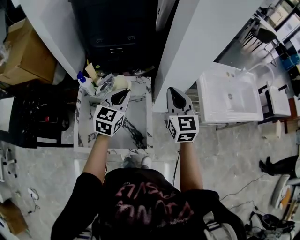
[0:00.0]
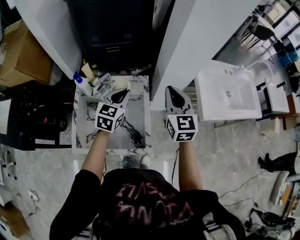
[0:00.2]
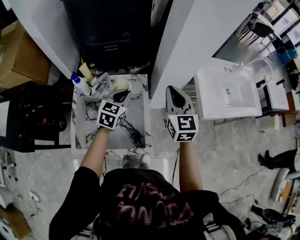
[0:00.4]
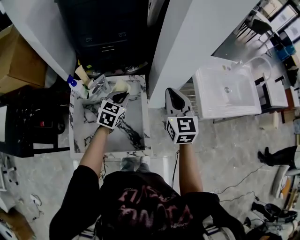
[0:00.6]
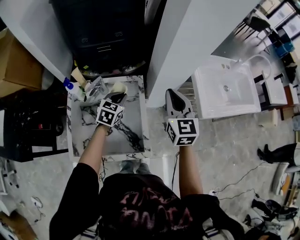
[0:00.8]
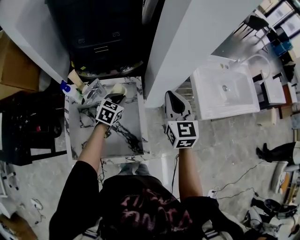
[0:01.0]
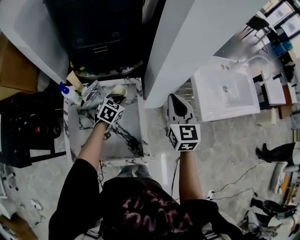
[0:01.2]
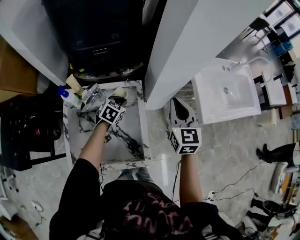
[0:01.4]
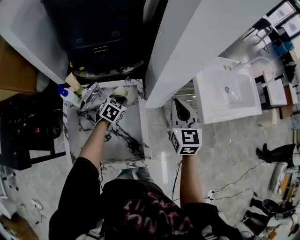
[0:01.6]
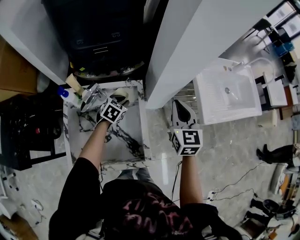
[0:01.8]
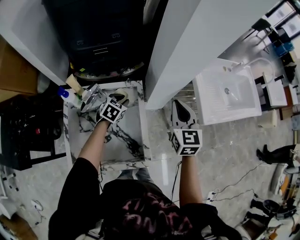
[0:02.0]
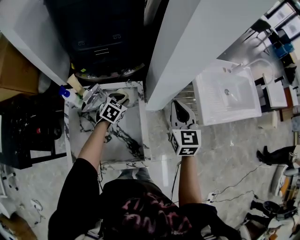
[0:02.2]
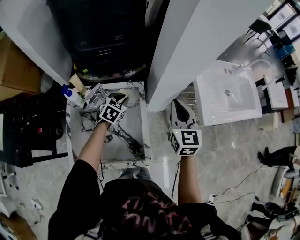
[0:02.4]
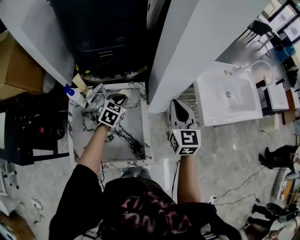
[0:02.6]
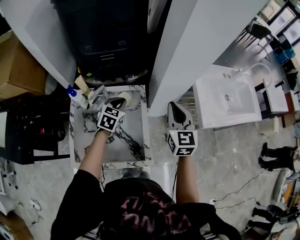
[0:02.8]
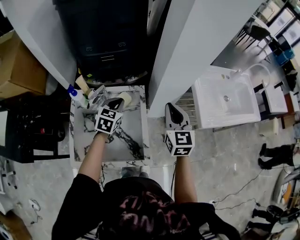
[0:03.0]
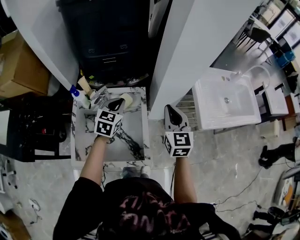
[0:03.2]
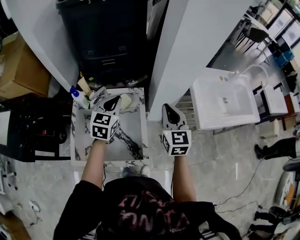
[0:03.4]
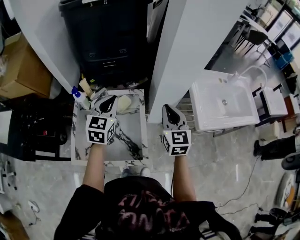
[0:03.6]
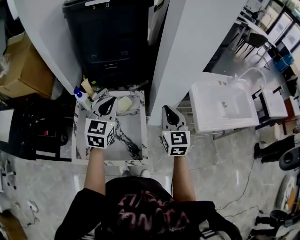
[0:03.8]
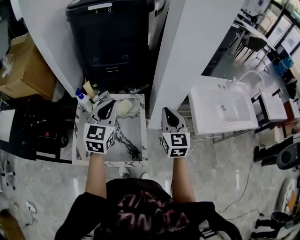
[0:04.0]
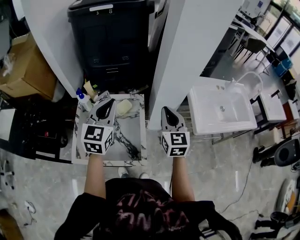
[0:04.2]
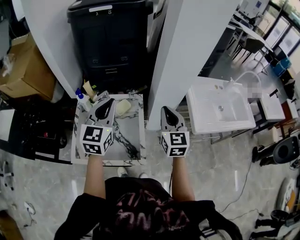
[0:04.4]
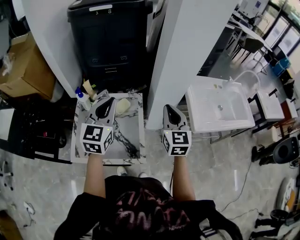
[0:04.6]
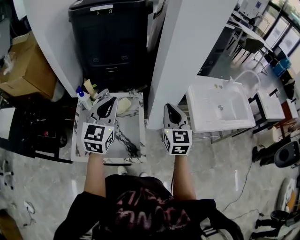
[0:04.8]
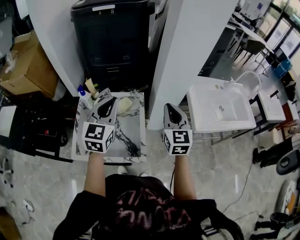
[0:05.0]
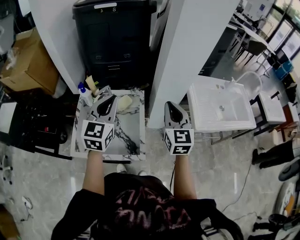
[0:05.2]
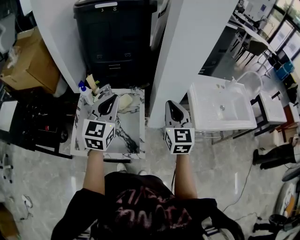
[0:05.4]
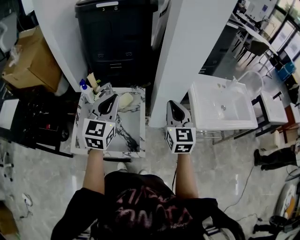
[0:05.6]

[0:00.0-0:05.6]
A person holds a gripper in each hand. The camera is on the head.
0:00.0 to 0:01.4: The left gripper is displaced downward and forward by approximately 25 cm, and changes its angle by some 30 degrees. Meanwhile the right gripper shifts approximately 5 cm downward.
0:01.4 to 0:02.8: The left gripper moves upward, roughly 10 cm.
0:02.8 to 0:04.2: The right gripper moves about 5 cm, while the left gripper heads upward and backward, covering some 25 cm, and turns by roughly 30 degrees.
0:04.2 to 0:05.6: The grippers make only small movements.

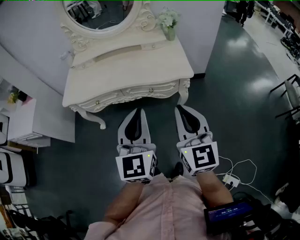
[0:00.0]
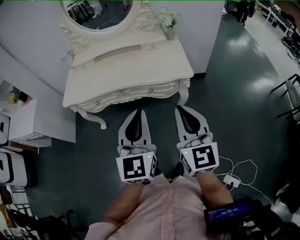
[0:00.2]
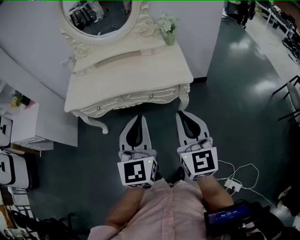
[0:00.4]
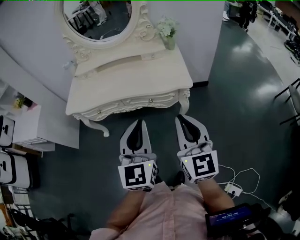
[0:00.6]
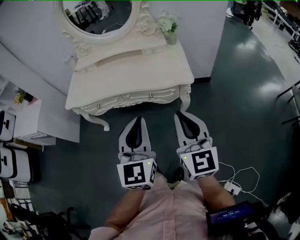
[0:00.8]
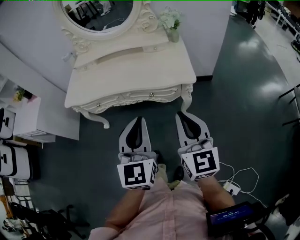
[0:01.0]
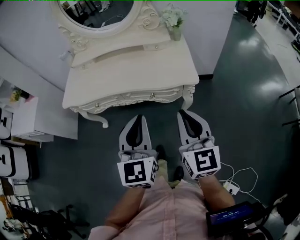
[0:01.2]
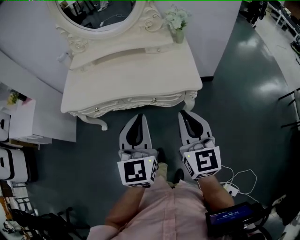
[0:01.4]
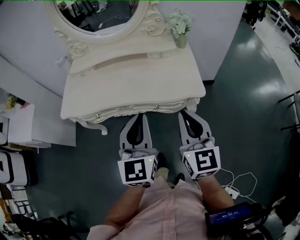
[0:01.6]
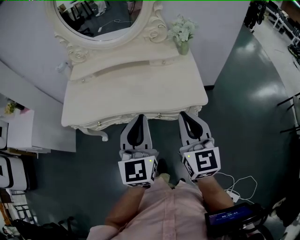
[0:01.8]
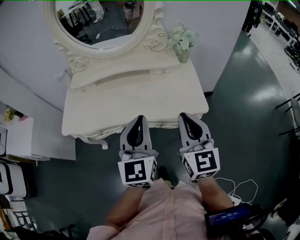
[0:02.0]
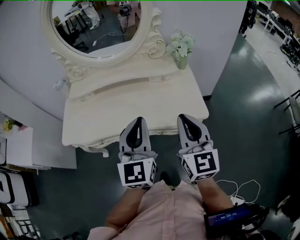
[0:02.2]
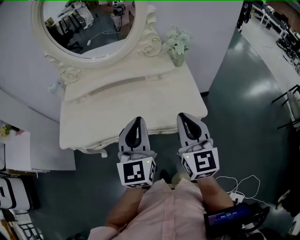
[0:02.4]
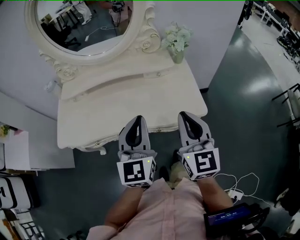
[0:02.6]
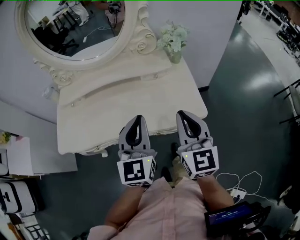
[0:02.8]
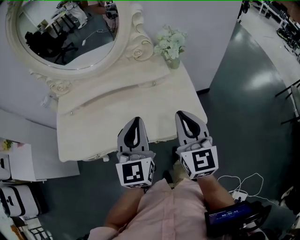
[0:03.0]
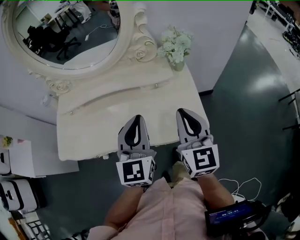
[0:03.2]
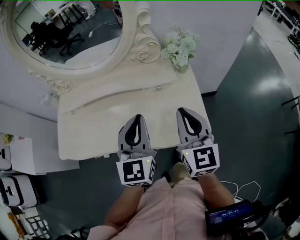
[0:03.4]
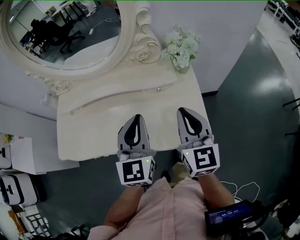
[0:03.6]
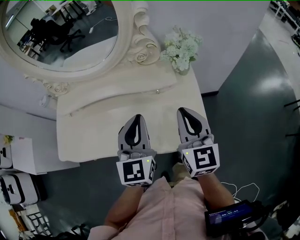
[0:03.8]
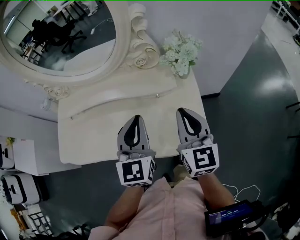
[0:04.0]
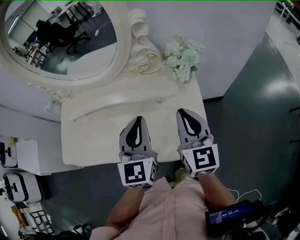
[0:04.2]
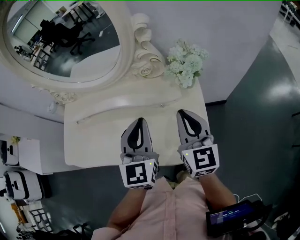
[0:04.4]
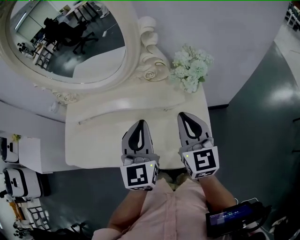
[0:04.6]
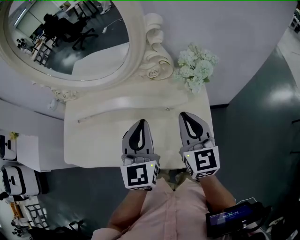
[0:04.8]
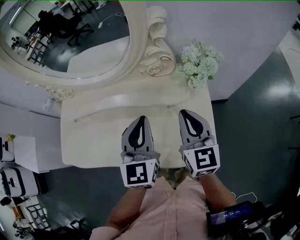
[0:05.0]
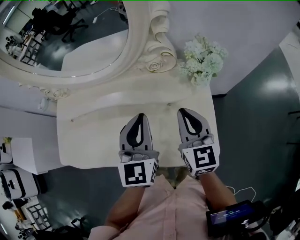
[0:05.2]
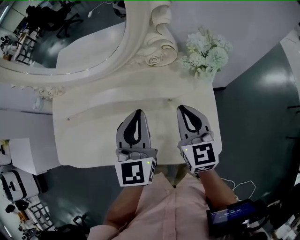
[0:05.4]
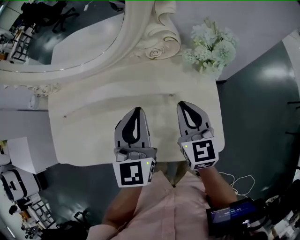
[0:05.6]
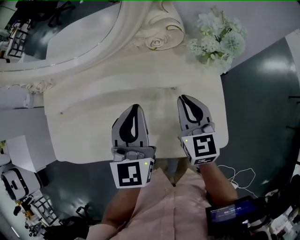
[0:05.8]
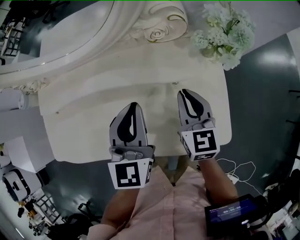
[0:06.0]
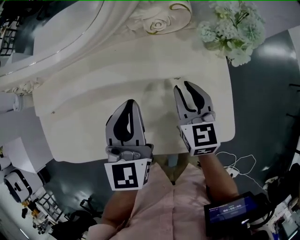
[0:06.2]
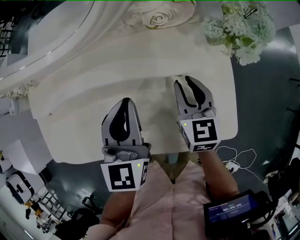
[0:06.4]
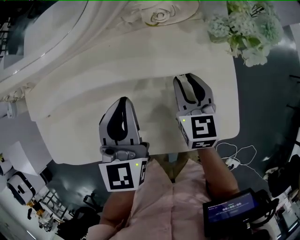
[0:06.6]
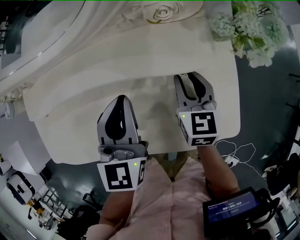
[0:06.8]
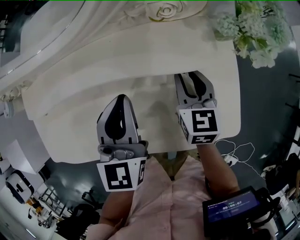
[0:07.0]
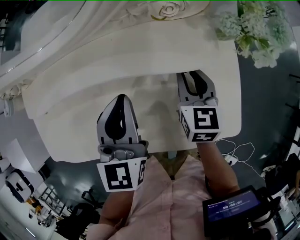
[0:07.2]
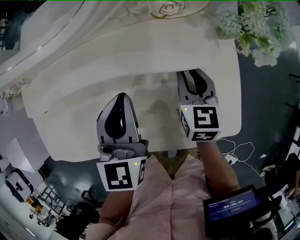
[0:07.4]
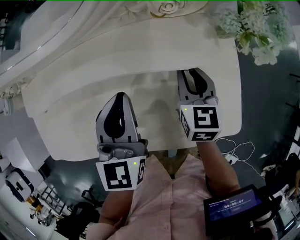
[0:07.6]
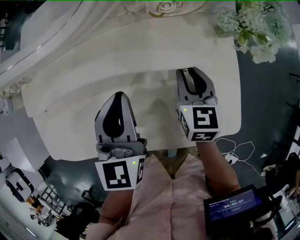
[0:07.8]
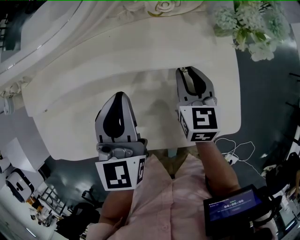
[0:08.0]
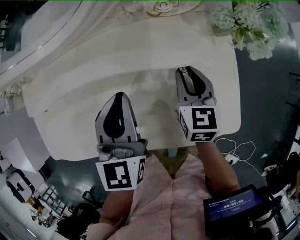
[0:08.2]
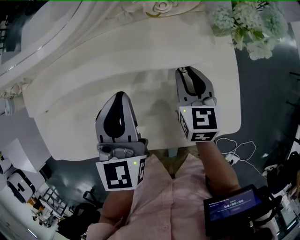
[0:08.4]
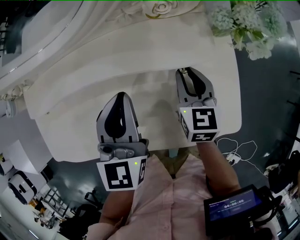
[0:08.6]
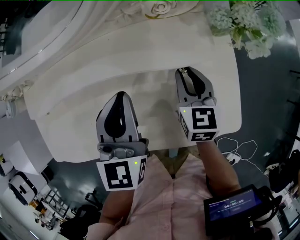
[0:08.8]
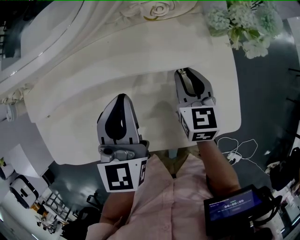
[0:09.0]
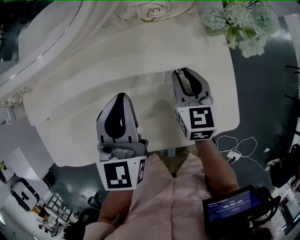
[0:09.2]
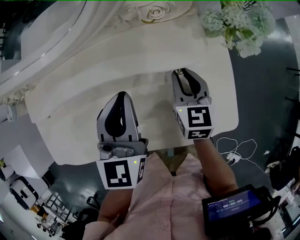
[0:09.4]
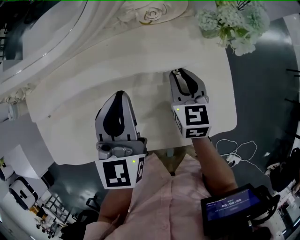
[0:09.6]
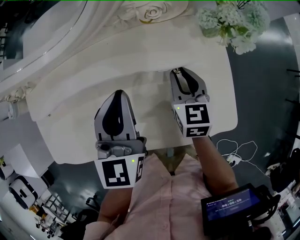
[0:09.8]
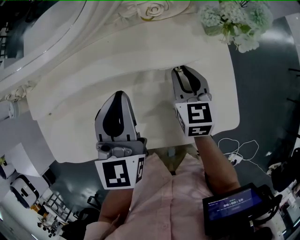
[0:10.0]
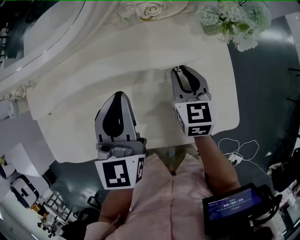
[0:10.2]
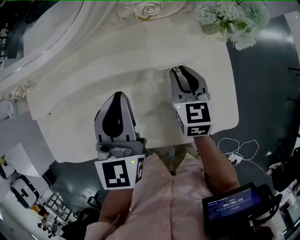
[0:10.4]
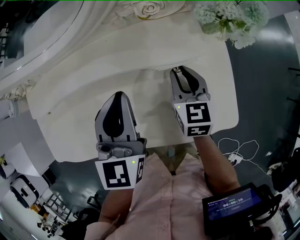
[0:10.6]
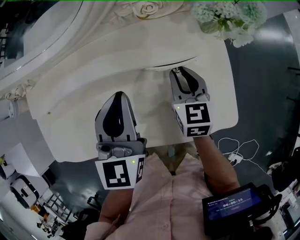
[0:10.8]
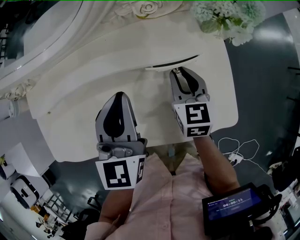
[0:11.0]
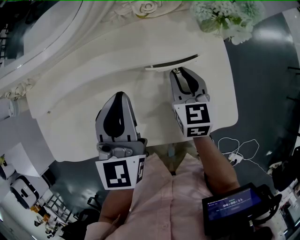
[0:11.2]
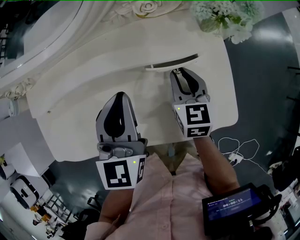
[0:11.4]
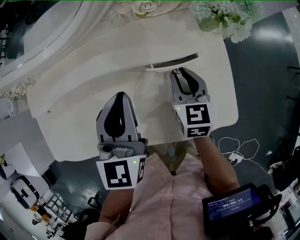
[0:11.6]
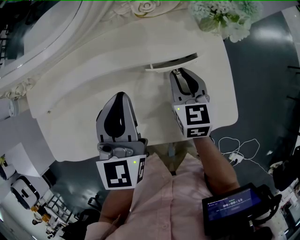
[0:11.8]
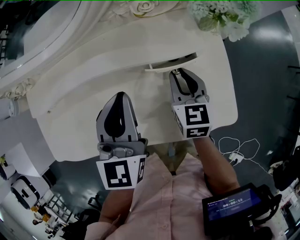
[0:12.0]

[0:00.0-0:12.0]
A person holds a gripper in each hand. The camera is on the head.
0:00.0 to 0:01.6: Both grippers move forward, some 15 cm.
0:01.6 to 0:03.0: Both grippers travel together forward, approximately 20 cm.
0:03.0 to 0:04.4: The two grippers go some 15 cm forward.
0:04.4 to 0:06.0: The grippers both shift downward, to the left and forward by roughly 15 cm.
0:06.0 to 0:07.6: The left gripper moves about 5 cm. The right gripper heads downward, covering some 5 cm.
0:07.6 to 0:09.0: Both grippers stay put.
0:09.0 to 0:12.0: The grippers make only small movements.

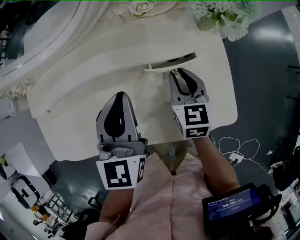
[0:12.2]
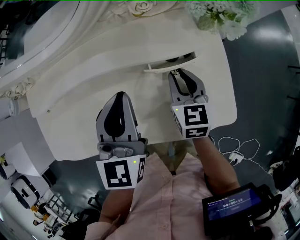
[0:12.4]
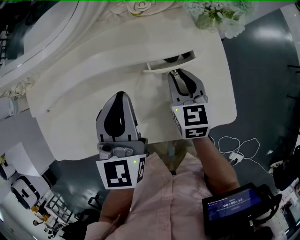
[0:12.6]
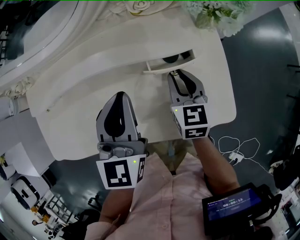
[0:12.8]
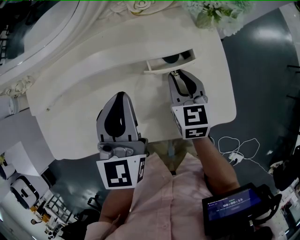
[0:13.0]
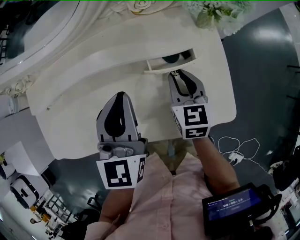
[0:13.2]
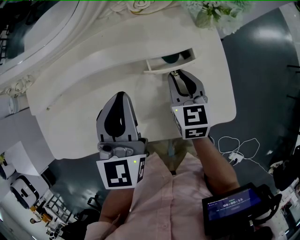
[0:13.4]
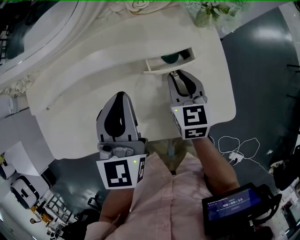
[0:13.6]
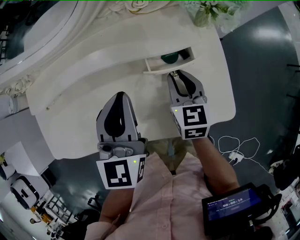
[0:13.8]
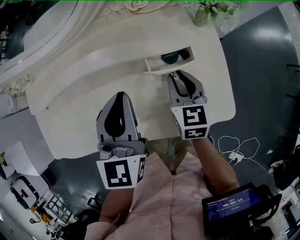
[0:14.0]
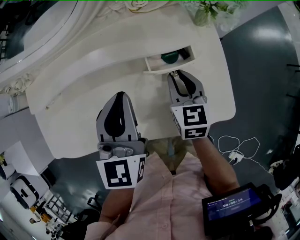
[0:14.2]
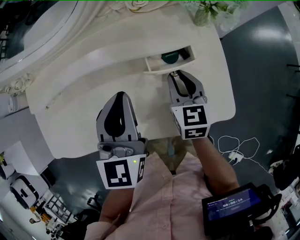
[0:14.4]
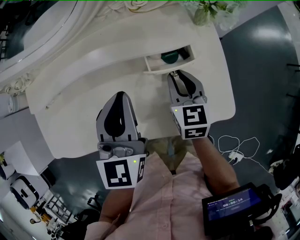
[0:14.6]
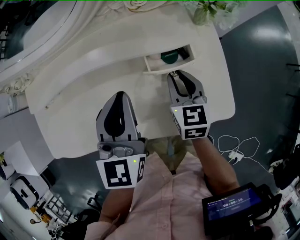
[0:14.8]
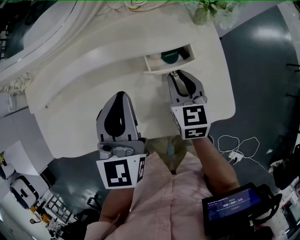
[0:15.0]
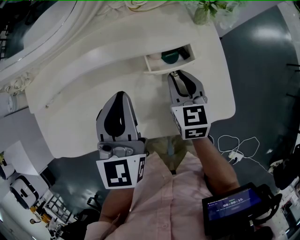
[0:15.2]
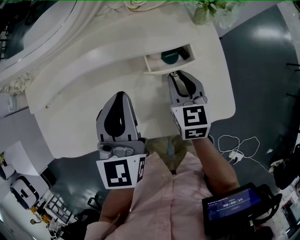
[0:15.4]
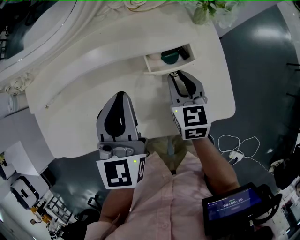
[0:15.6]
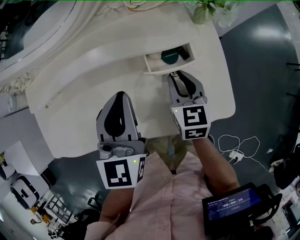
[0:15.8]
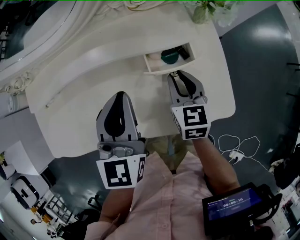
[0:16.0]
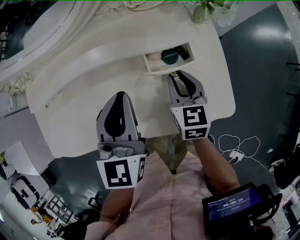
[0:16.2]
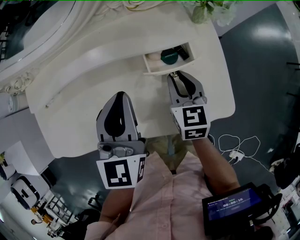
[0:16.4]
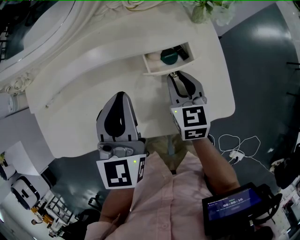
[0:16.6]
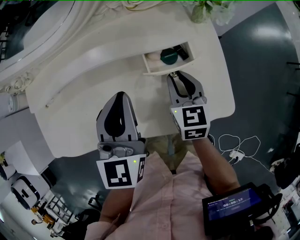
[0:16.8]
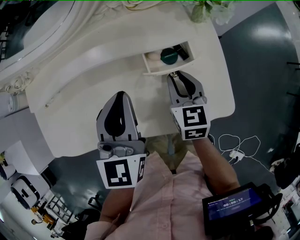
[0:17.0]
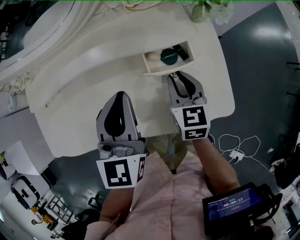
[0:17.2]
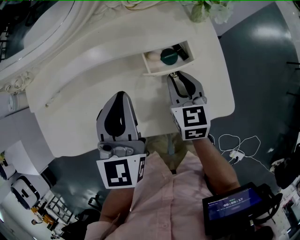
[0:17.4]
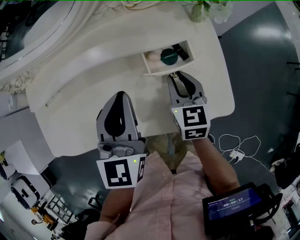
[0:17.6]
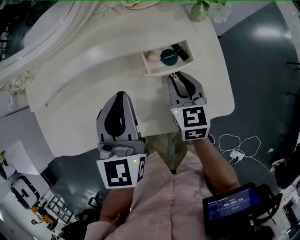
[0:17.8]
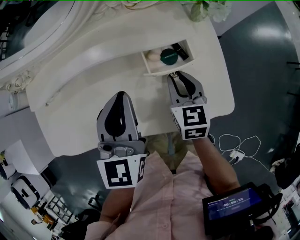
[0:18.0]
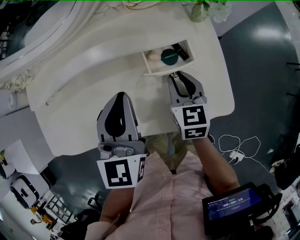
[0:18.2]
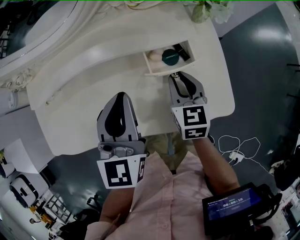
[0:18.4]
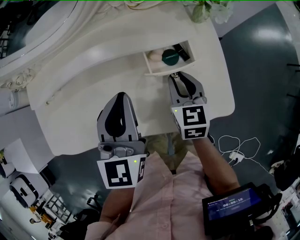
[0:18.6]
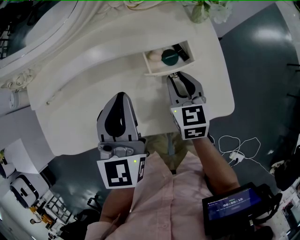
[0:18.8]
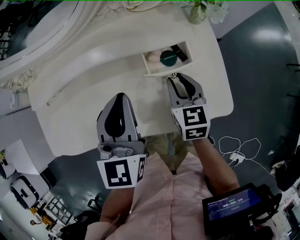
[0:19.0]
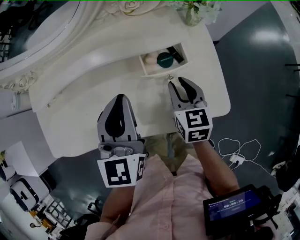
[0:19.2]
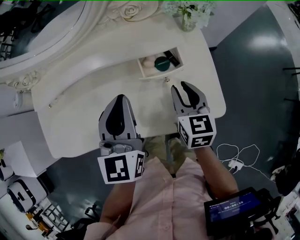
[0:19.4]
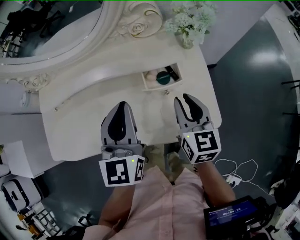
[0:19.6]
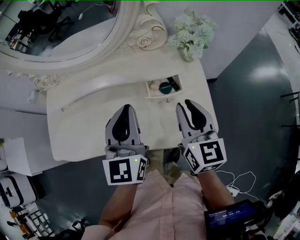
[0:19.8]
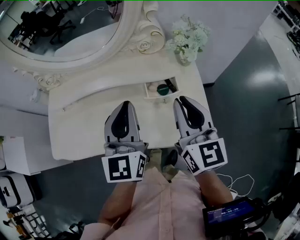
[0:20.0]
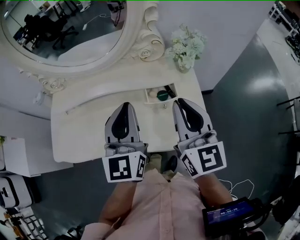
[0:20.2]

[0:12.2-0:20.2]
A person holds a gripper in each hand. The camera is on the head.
0:12.2 to 0:13.8: The grippers stay close to where they were, moving slightly.
0:13.8 to 0:17.0: Both grippers stay about where they are.
0:17.0 to 0:18.6: Both grippers stay about where they are.
0:18.6 to 0:20.2: The right gripper goes some 25 cm upward, and points its fingers roughly 30 degrees further upward. Meanwhile the left gripper goes roughly 10 cm upward.
